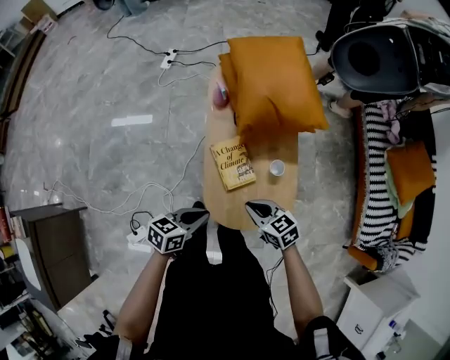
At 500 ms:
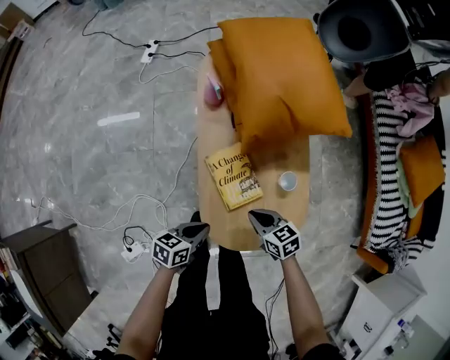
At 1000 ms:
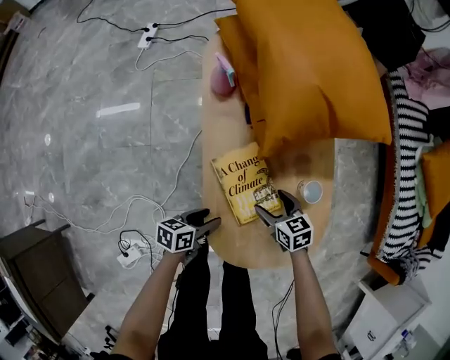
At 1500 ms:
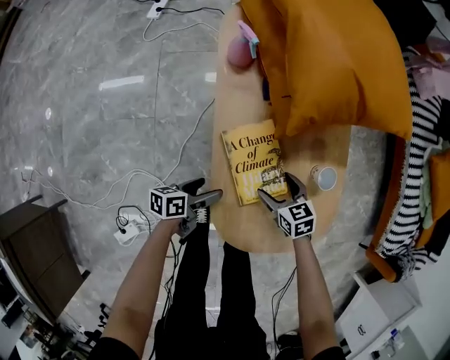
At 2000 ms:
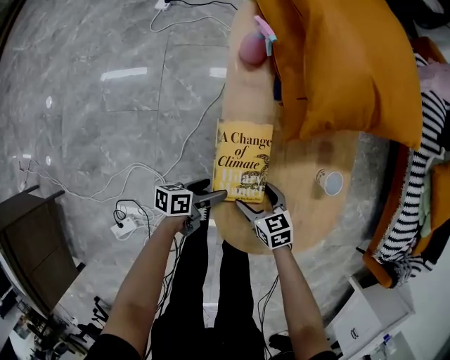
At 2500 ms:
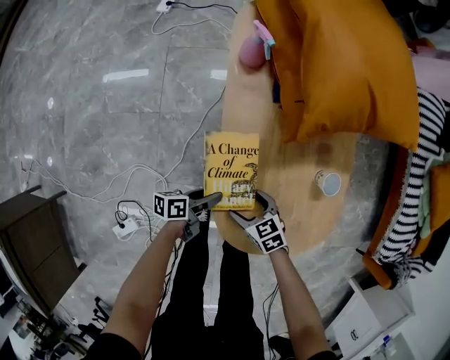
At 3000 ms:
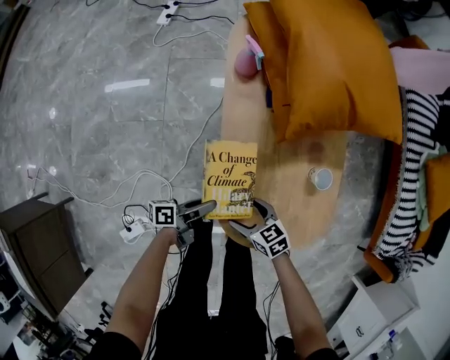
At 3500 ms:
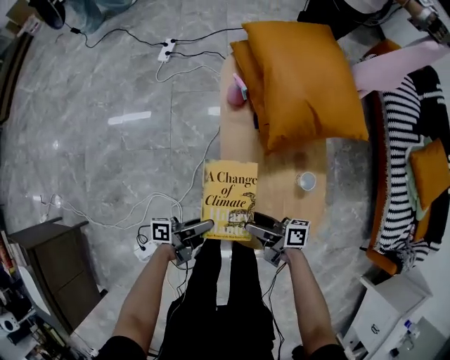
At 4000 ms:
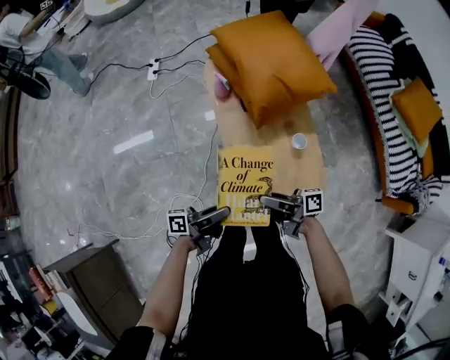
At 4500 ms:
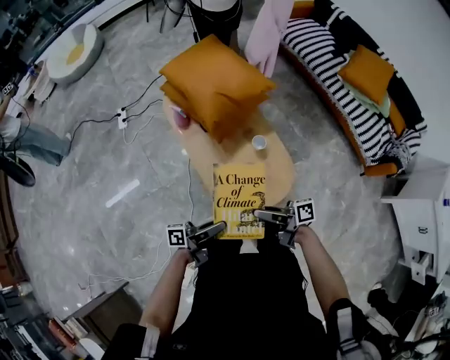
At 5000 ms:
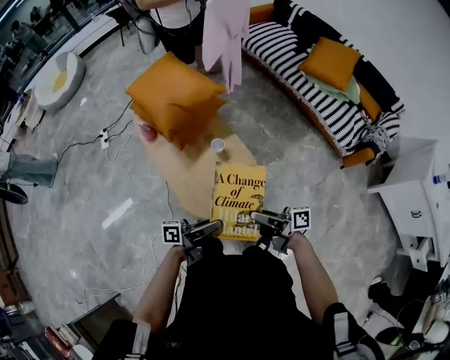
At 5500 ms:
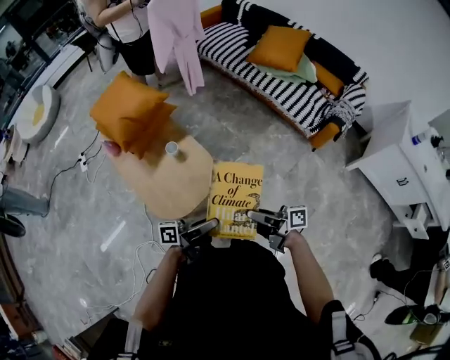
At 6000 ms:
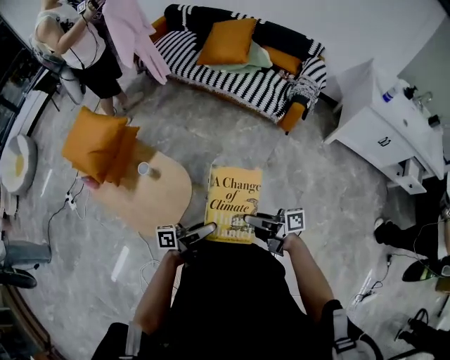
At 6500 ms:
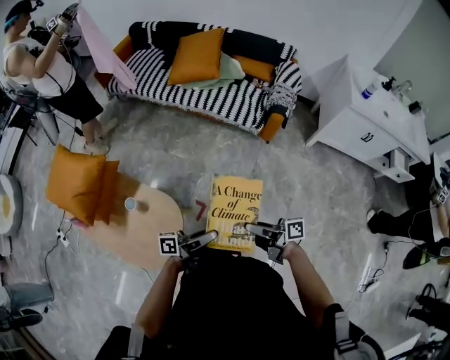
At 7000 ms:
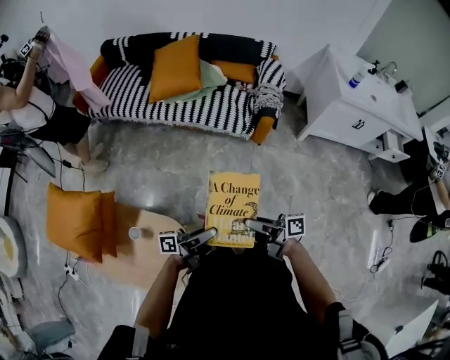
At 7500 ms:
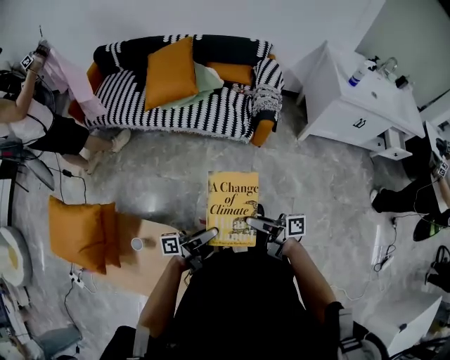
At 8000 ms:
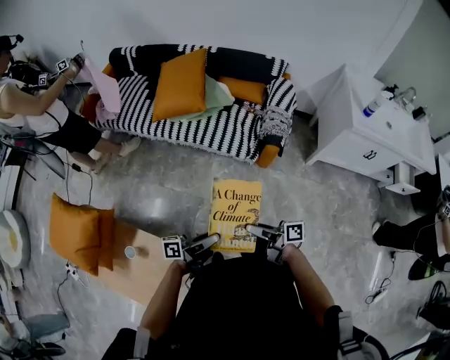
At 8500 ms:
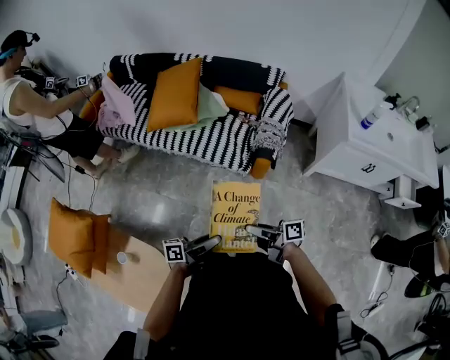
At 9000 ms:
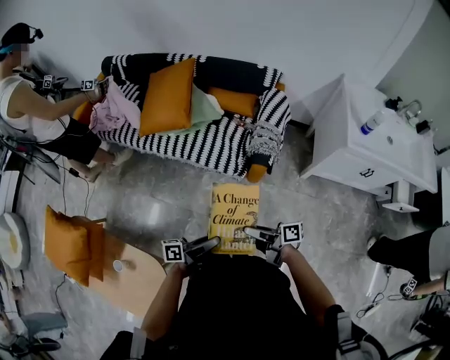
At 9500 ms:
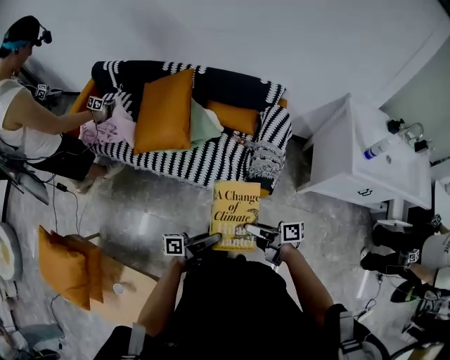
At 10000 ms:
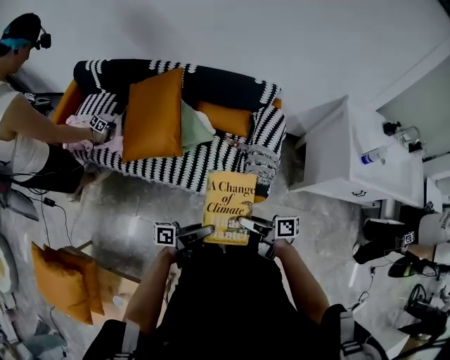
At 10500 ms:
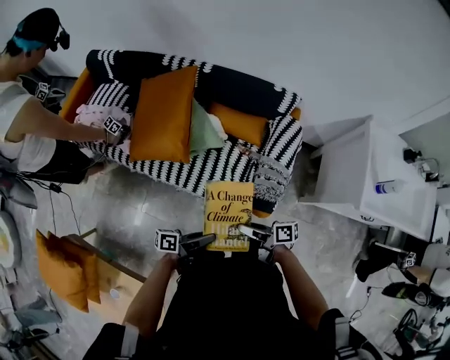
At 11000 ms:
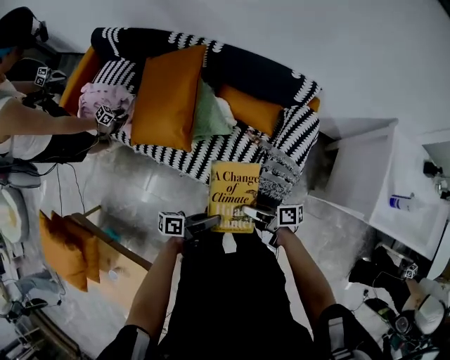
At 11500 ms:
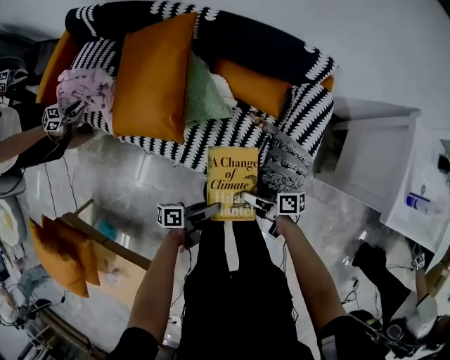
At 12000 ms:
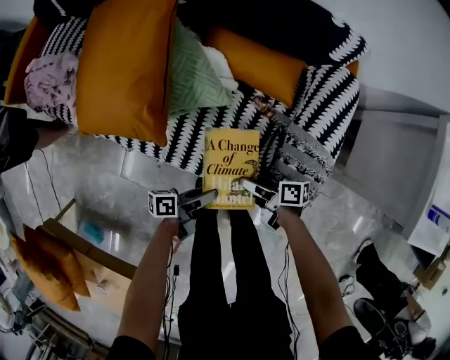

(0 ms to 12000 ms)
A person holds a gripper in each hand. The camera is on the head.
0 ms - 2000 ms: The two grippers go some 35 cm downward. The right gripper opens up. The left gripper rotates some 30 degrees, and opens its fingers.
2000 ms - 4000 ms: The right gripper goes upward and returns, about 20 cm each way, tilts its fingers some 60 degrees upward, and closes its fingers. The left gripper ends up about 15 cm from where it was, turns by approximately 30 degrees, and closes up.
4000 ms - 6000 ms: The two grippers travel together, approximately 50 cm. The right gripper turns by approximately 50 degrees. The left gripper changes its angle by approximately 50 degrees.
6000 ms - 8000 ms: The right gripper changes place by some 30 cm; the left gripper shifts by approximately 35 cm.
8000 ms - 10000 ms: The right gripper ends up approximately 10 cm from where it was. The left gripper moves approximately 10 cm.
10000 ms - 12000 ms: The two grippers go some 5 cm upward.

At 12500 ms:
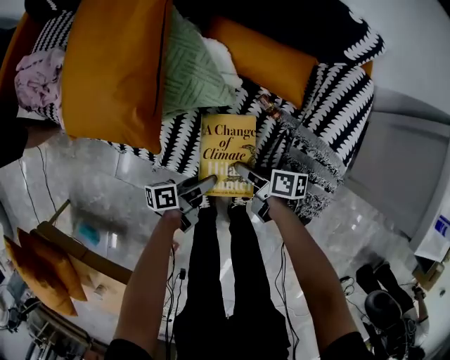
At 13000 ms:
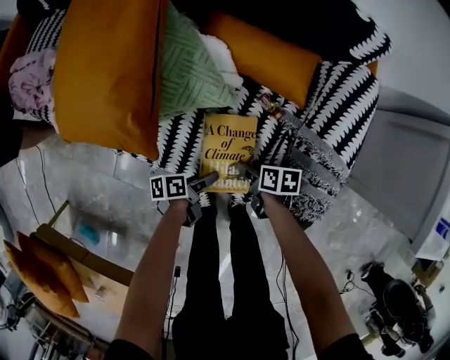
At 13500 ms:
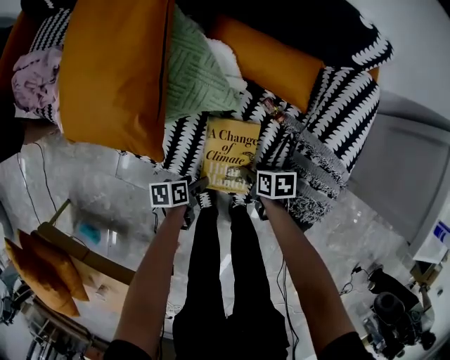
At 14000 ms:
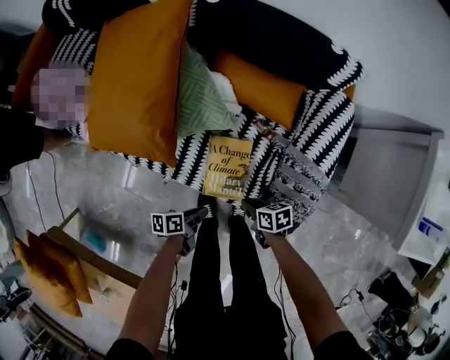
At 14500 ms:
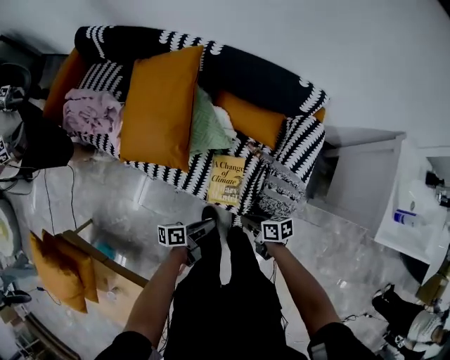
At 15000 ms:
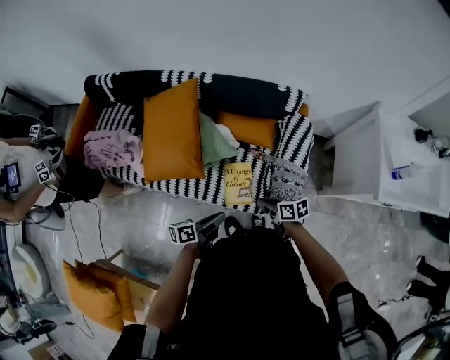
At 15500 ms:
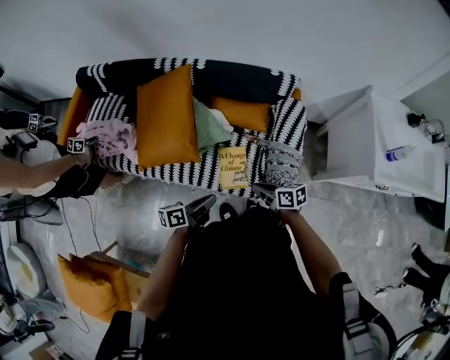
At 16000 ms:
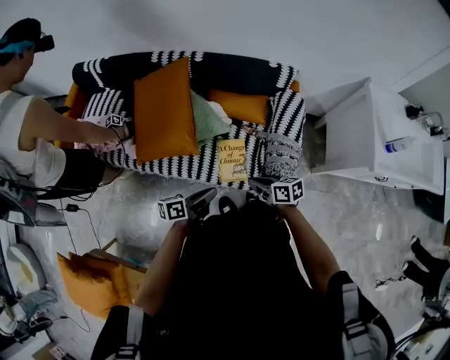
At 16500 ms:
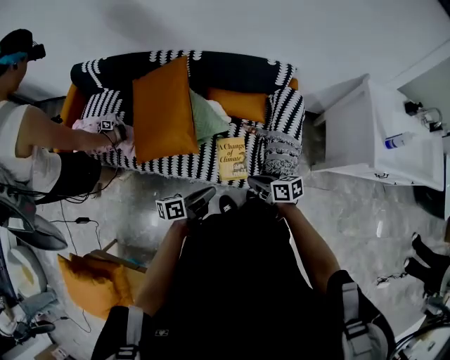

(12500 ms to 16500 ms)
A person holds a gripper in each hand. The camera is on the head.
12500 ms - 14500 ms: The grippers both shift downward by about 10 cm. The left gripper closes; the right gripper closes.
14500 ms - 16500 ms: Both grippers move forward and to the left, approximately 10 cm.

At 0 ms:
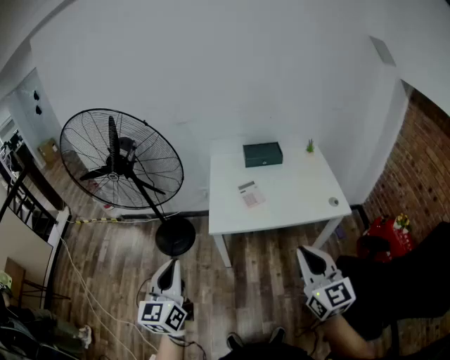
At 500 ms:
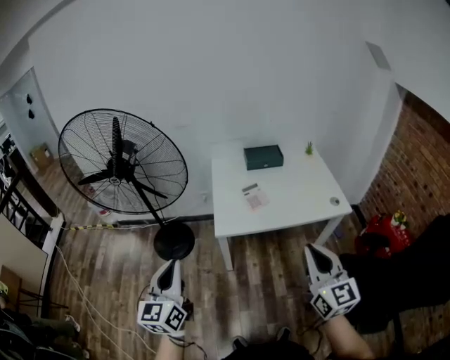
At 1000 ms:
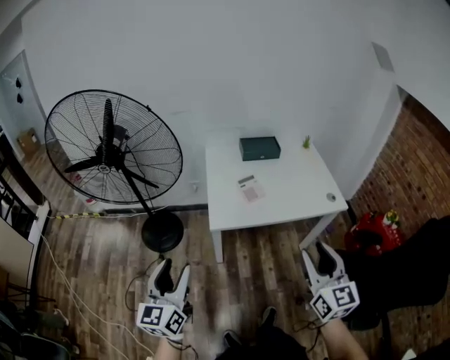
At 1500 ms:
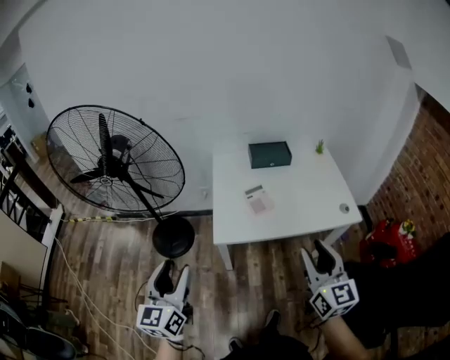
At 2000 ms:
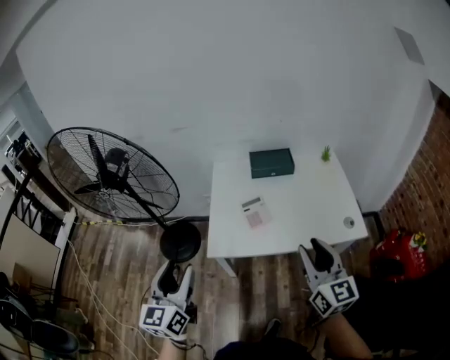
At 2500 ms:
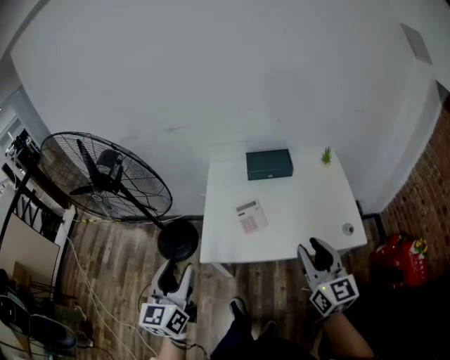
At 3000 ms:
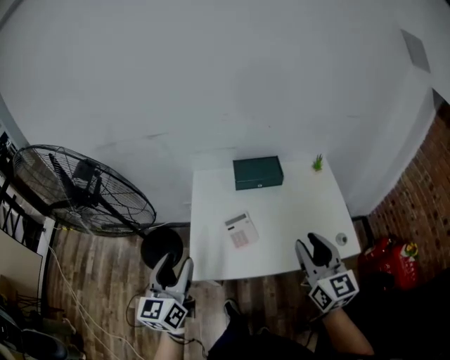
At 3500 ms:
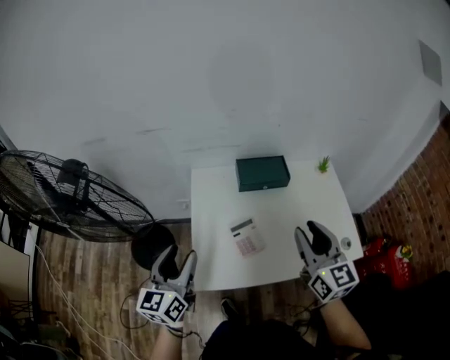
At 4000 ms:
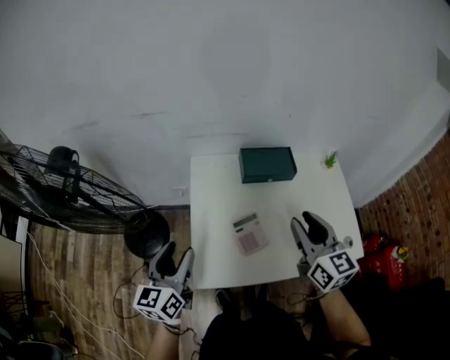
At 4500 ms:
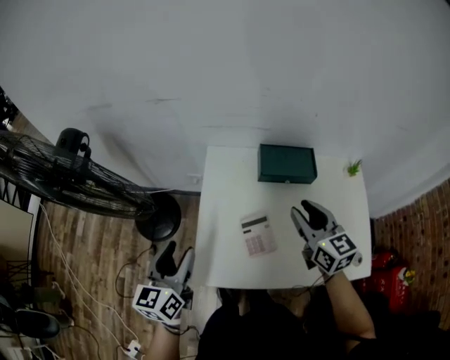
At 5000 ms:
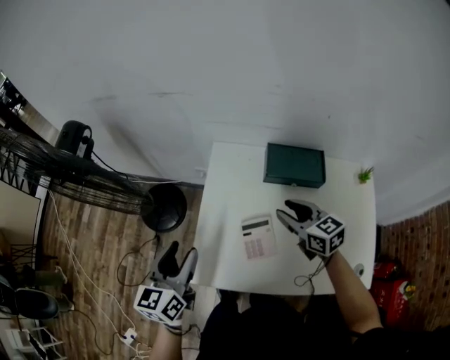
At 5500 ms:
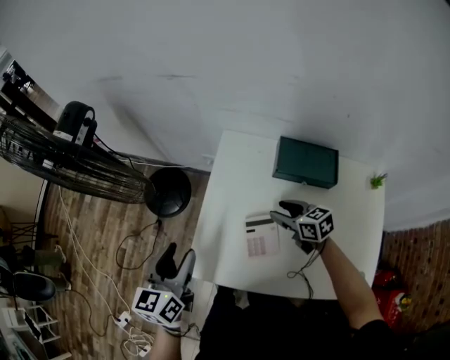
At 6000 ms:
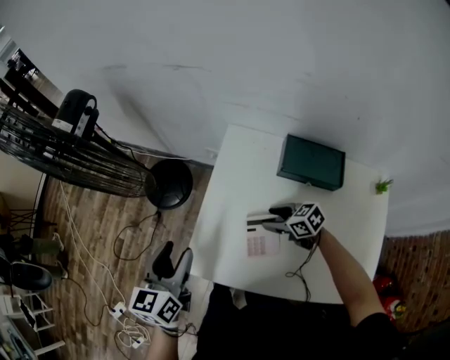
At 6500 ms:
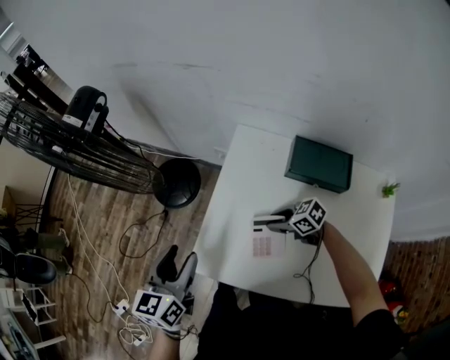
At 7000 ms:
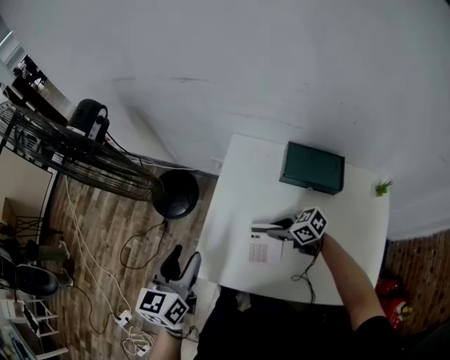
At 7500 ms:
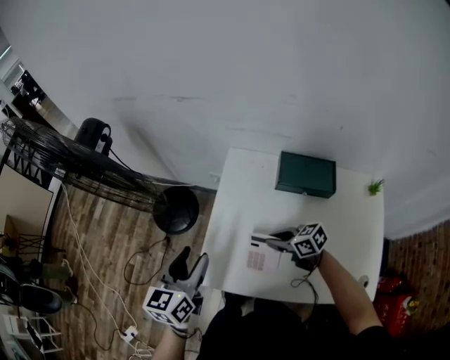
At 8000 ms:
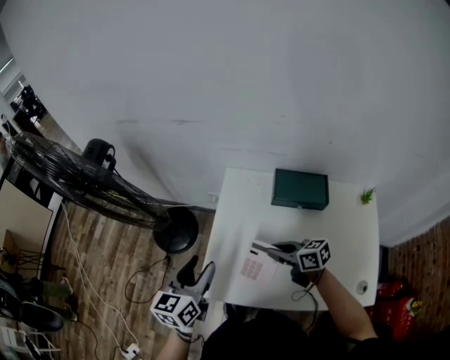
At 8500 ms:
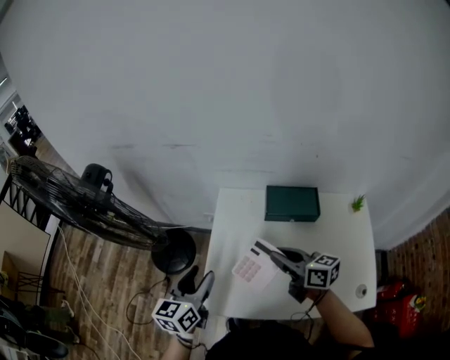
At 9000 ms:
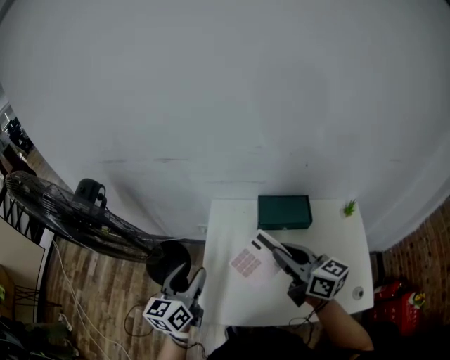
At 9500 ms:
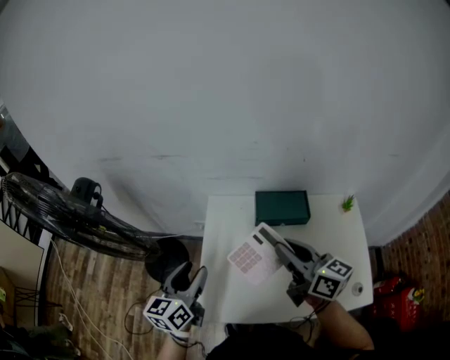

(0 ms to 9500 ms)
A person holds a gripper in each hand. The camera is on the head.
0 ms - 2000 ms: The grippers both shift forward by some 20 cm. The left gripper opens its fingers; the right gripper opens.
2000 ms - 4000 ms: Both grippers travel together forward, approximately 30 cm.
4000 ms - 5500 ms: The left gripper shifts about 5 cm downward. The right gripper goes about 25 cm downward, and changes its angle by about 50 degrees.
5500 ms - 7500 ms: The right gripper goes some 10 cm to the left, and closes up.
7500 ms - 9500 ms: The left gripper shifts by roughly 10 cm; the right gripper heads upward, covering about 30 cm, and tilts its fingers roughly 30 degrees upward.

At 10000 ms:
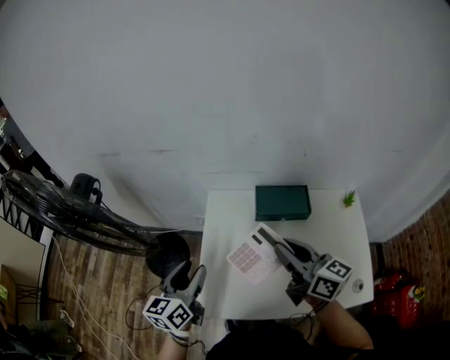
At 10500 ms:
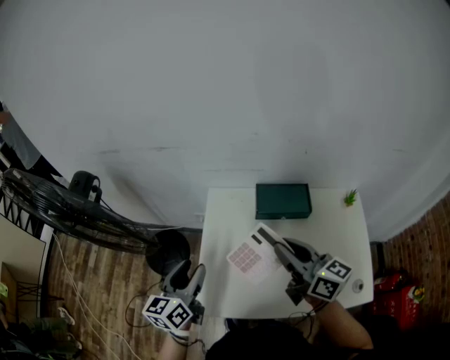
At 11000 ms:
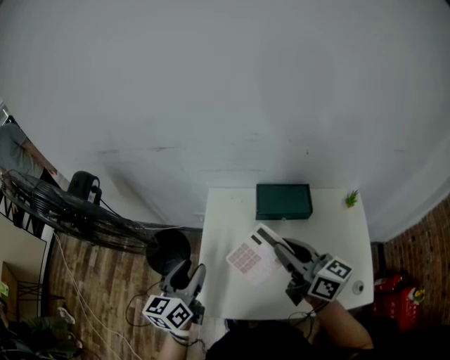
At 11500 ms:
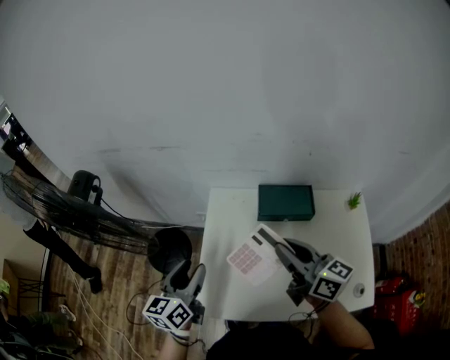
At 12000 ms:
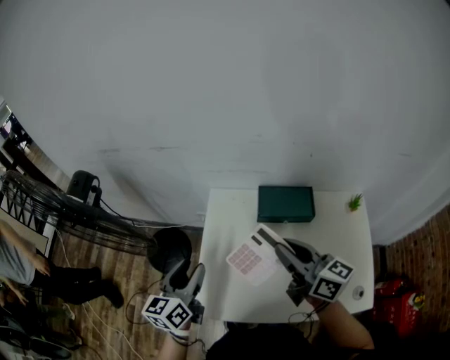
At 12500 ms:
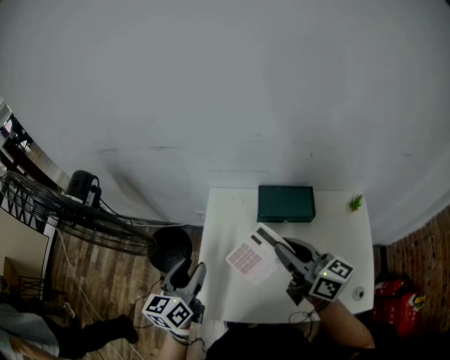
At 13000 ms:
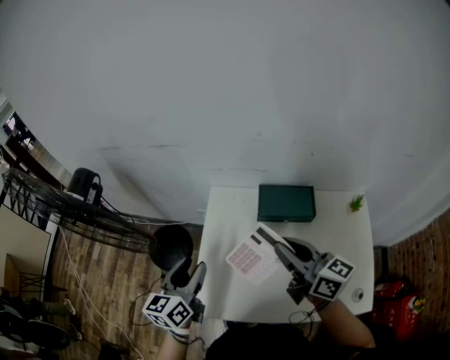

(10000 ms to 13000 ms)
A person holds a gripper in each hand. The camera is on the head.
10000 ms - 13000 ms: The grippers stay close to where they were, moving slightly.
